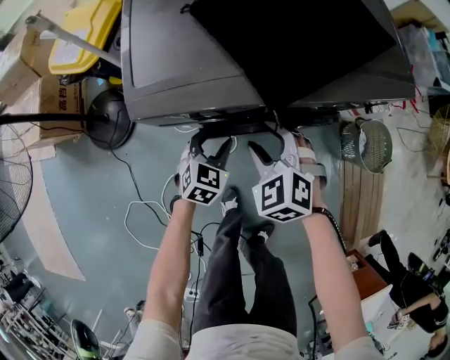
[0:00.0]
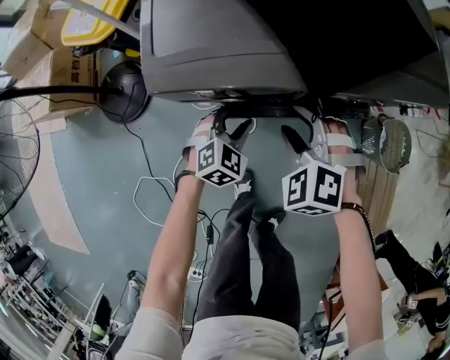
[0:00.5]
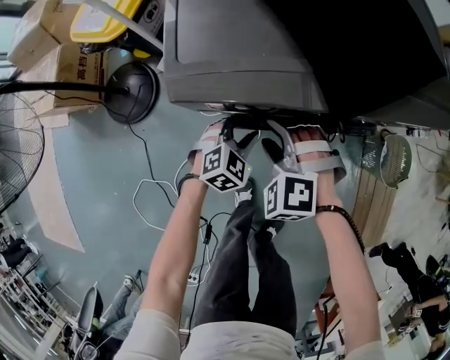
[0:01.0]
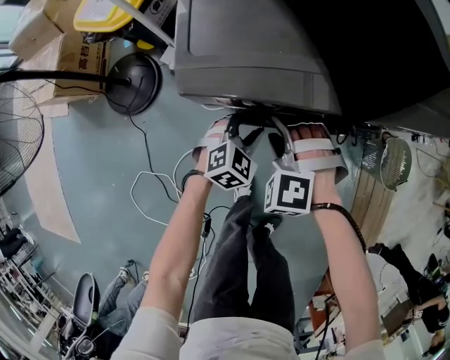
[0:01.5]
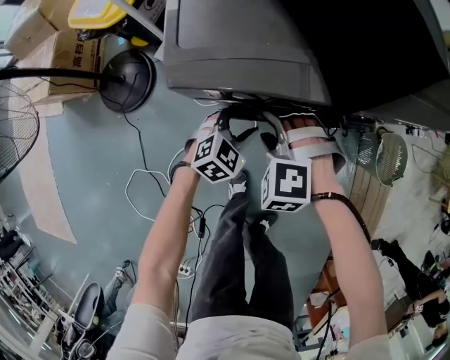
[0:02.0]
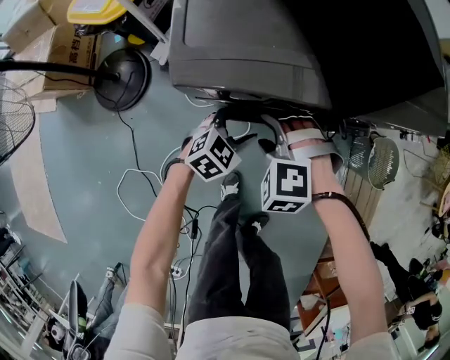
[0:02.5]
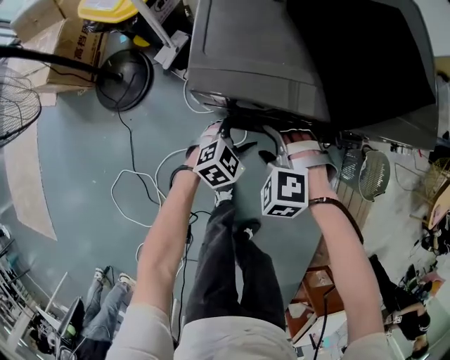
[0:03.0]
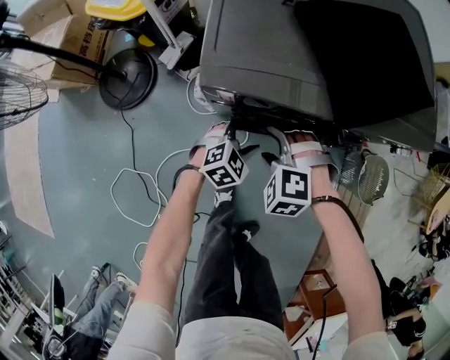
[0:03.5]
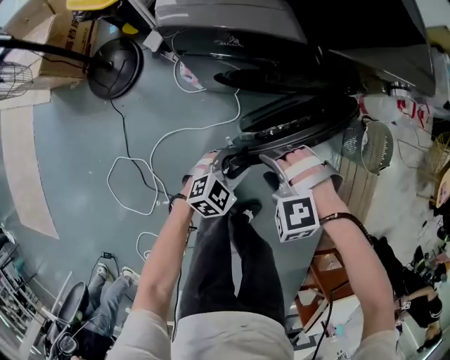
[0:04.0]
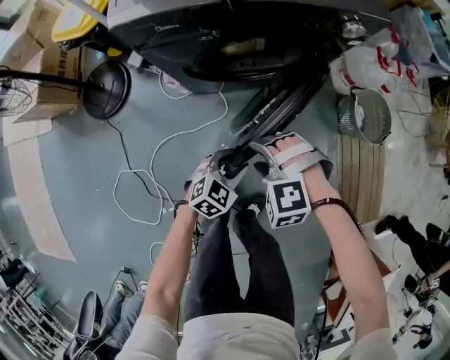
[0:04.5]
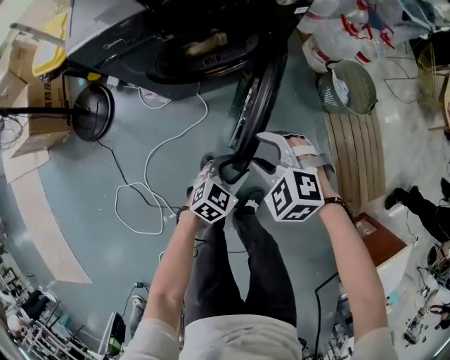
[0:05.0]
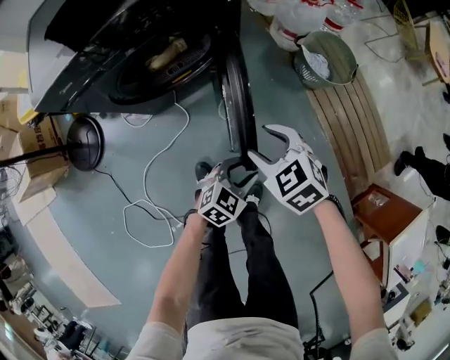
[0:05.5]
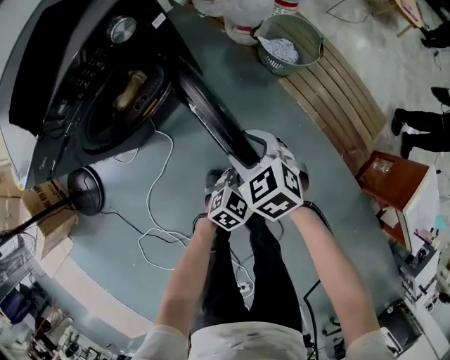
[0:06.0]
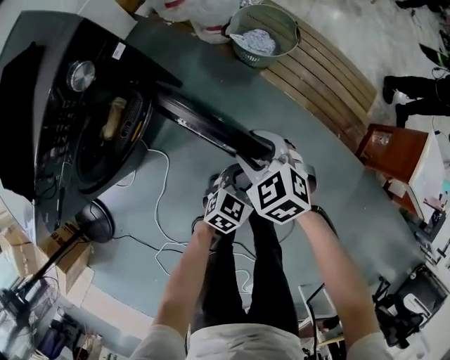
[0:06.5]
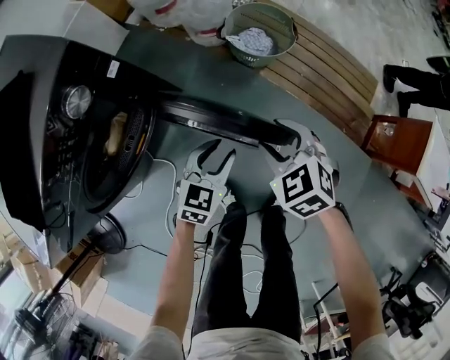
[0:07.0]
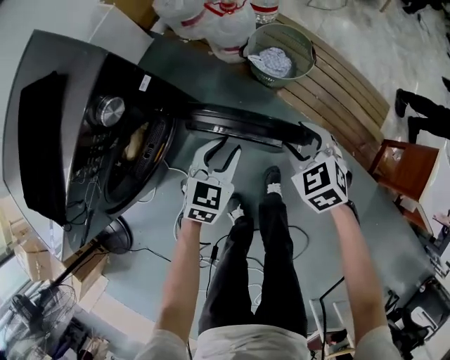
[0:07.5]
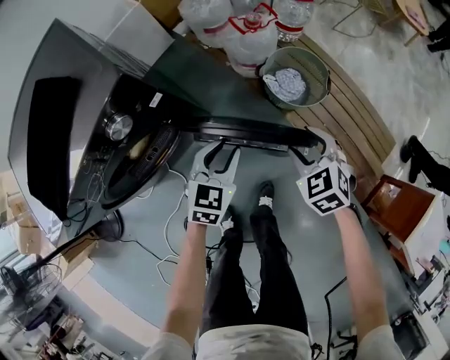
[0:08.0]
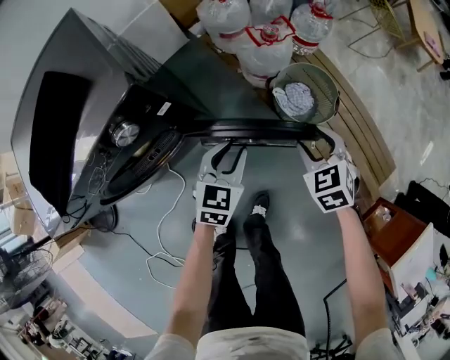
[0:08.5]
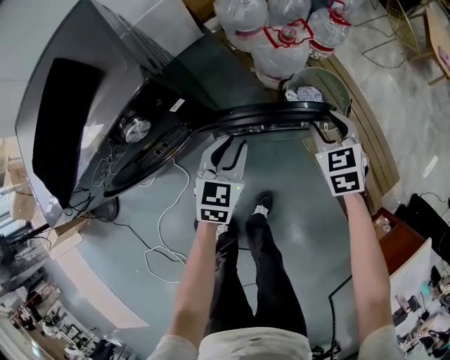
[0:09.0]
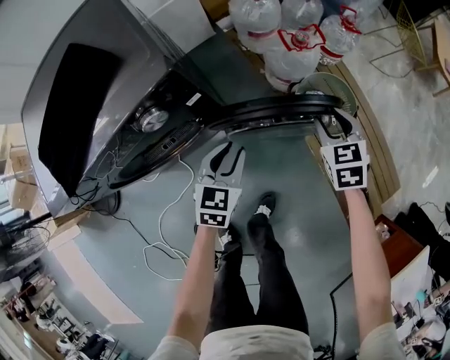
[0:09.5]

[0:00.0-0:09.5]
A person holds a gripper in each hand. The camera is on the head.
0:00.0 to 0:02.0: The right gripper moves to the left, approximately 5 cm, and turns by roughly 40 degrees.
0:02.0 to 0:04.0: The two grippers go roughly 20 cm backward and to the right. The right gripper changes its angle by approximately 20 degrees.
0:04.0 to 0:05.5: The right gripper ends up roughly 25 cm from where it was, and twists approximately 80 degrees clockwise, seen from behind; the left gripper moves approximately 30 cm, and turns by about 20 degrees.
0:05.5 to 0:07.5: The right gripper shifts by approximately 25 cm, and rotates about 40 degrees, while the left gripper shifts by approximately 25 cm.
0:07.5 to 0:09.5: The right gripper moves forward, about 25 cm; the left gripper shifts approximately 10 cm forward and to the left, and rotates approximately 30 degrees.

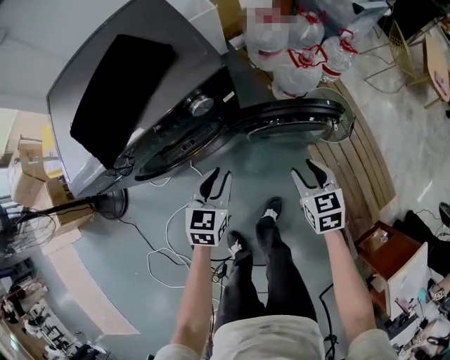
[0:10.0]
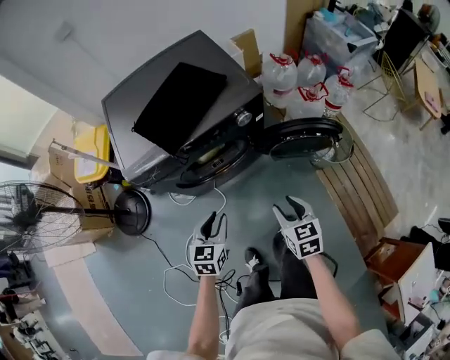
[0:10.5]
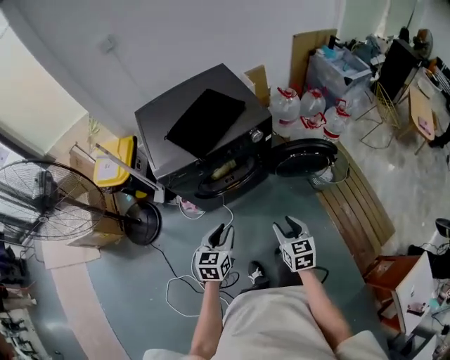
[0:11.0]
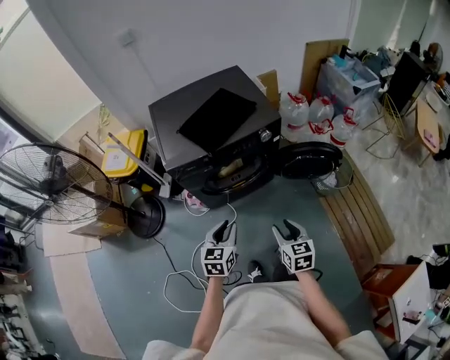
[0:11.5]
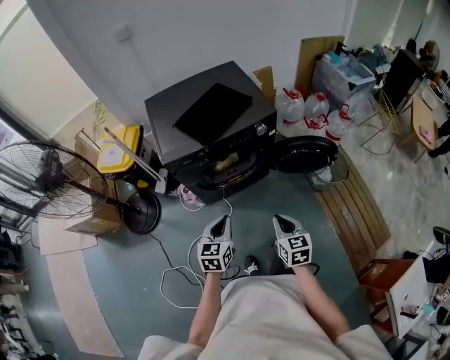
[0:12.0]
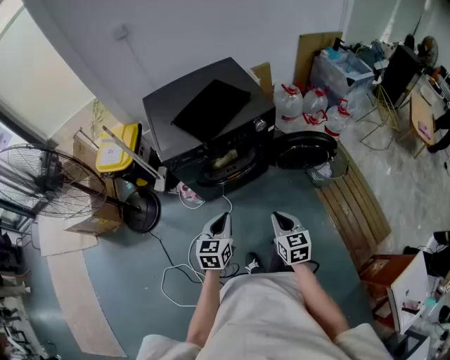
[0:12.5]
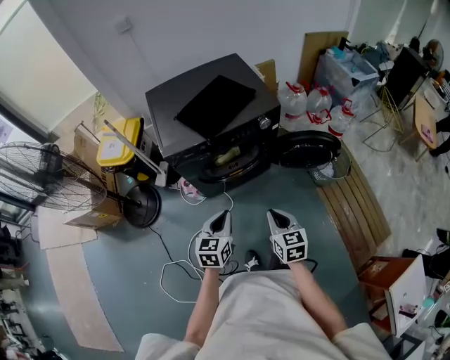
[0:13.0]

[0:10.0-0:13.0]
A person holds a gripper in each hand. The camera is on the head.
0:10.0 to 0:11.5: Both grippers travel together backward, to the left and upward, about 35 cm.
0:11.5 to 0:13.0: The right gripper closes its fingers.

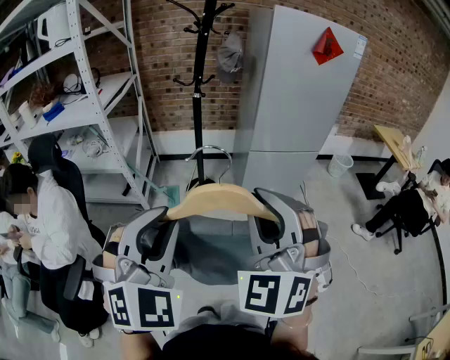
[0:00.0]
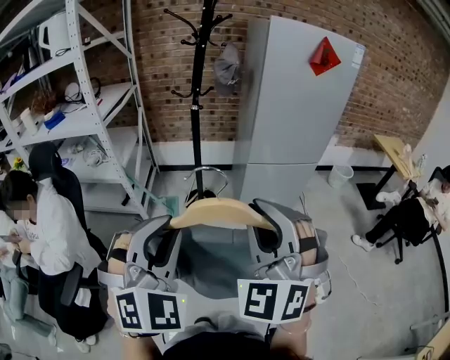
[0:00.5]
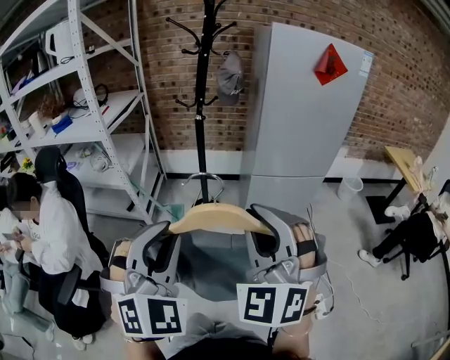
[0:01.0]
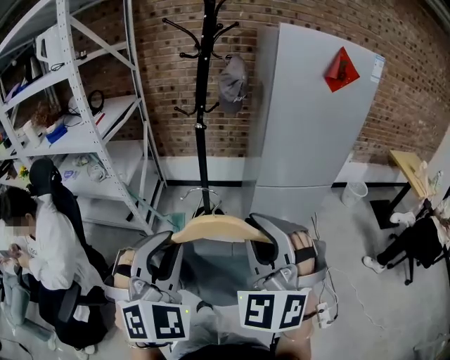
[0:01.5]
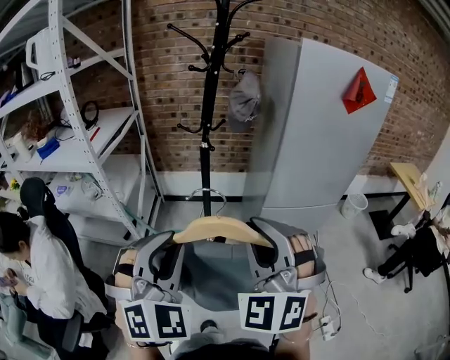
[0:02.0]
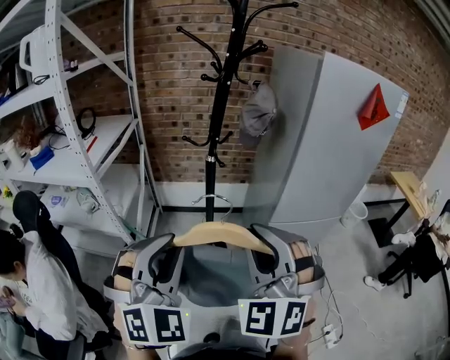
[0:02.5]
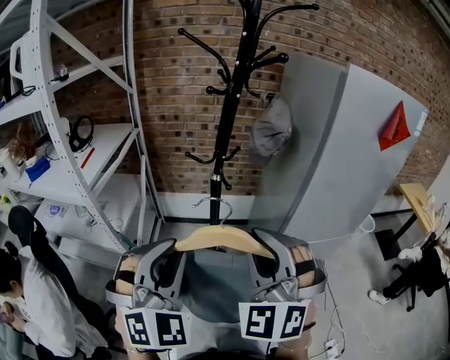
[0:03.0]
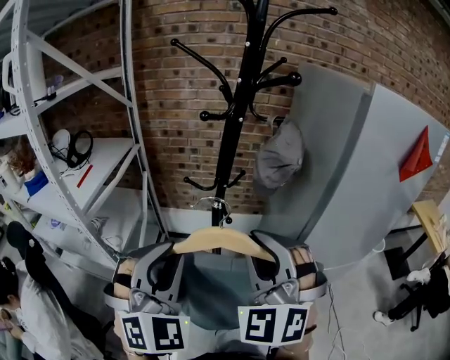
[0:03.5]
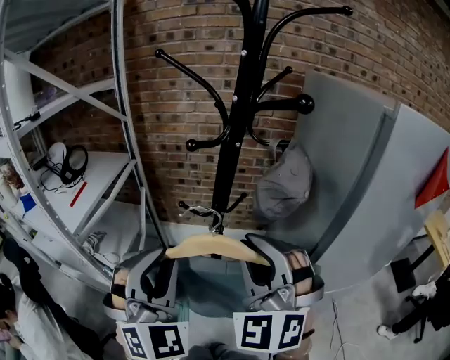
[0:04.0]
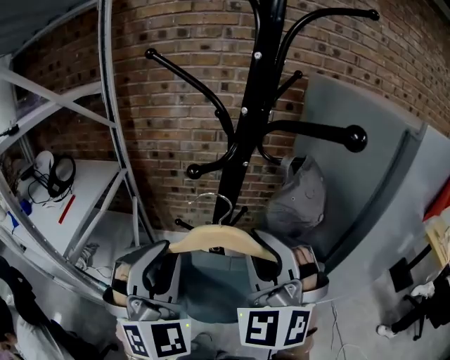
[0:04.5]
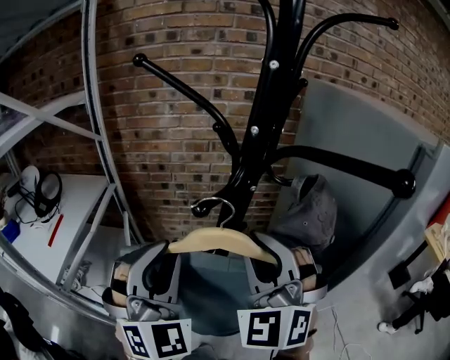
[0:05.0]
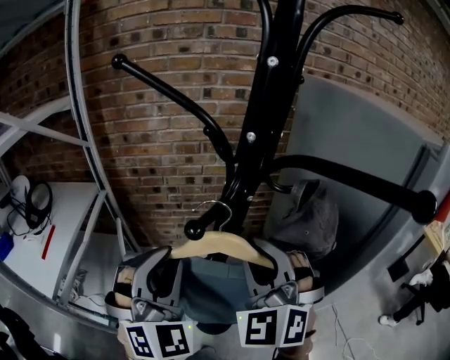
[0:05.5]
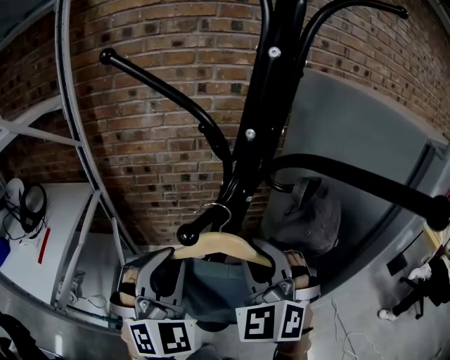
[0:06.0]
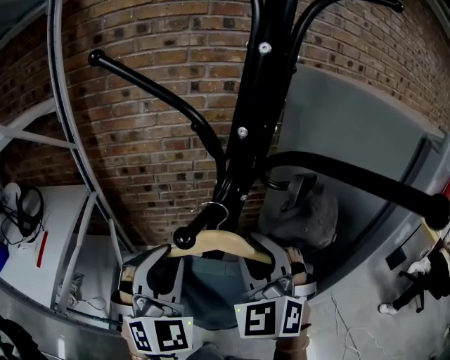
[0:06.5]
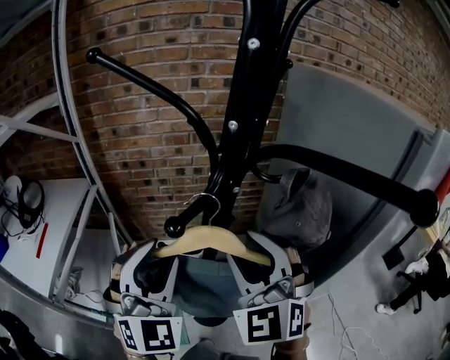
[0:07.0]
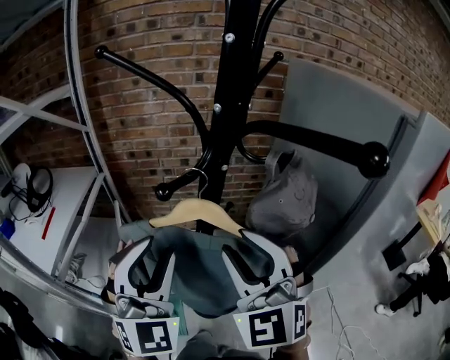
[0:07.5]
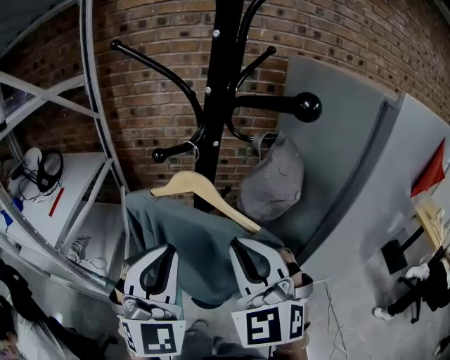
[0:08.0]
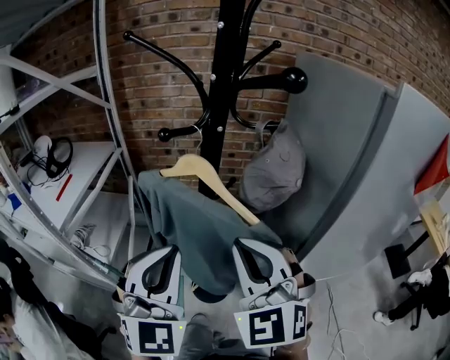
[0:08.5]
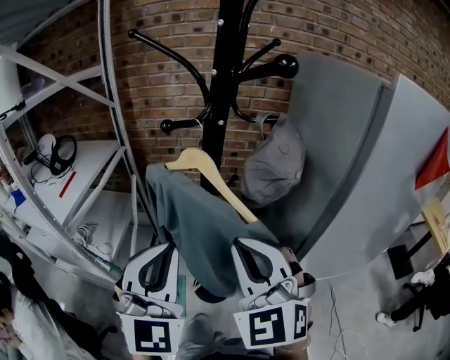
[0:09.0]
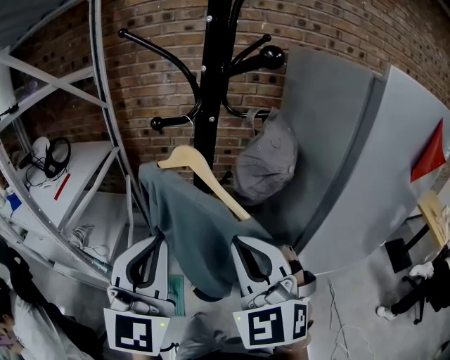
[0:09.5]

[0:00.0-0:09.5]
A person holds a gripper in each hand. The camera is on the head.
0:00.0 to 0:02.0: Both grippers move forward, approximately 20 cm.
0:02.0 to 0:04.0: The grippers both shift forward by about 35 cm.
0:04.0 to 0:05.5: Both grippers travel together forward, about 15 cm.
0:05.5 to 0:07.5: Both grippers travel together backward, approximately 5 cm. The right gripper opens.
0:07.5 to 0:09.5: Both grippers move backward, roughly 10 cm. The right gripper closes, while the left gripper turns by about 30 degrees, and closes its fingers.

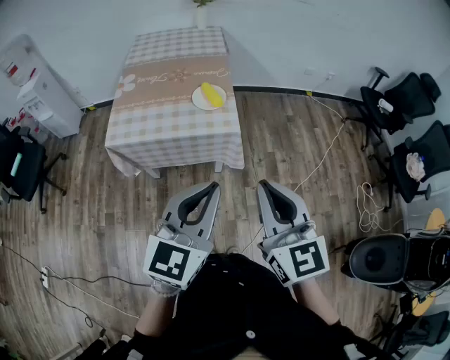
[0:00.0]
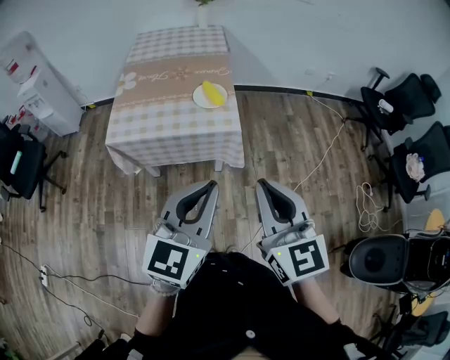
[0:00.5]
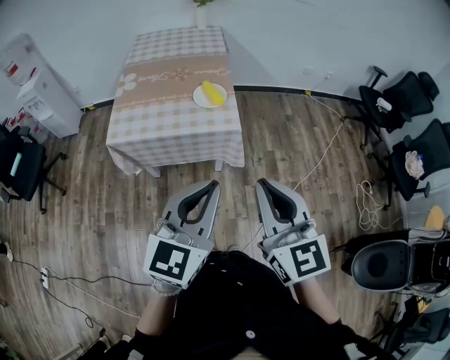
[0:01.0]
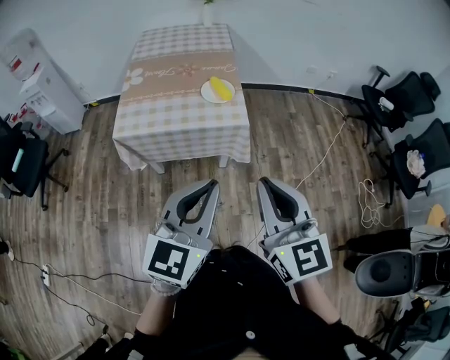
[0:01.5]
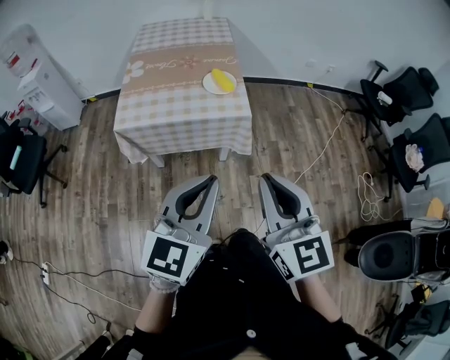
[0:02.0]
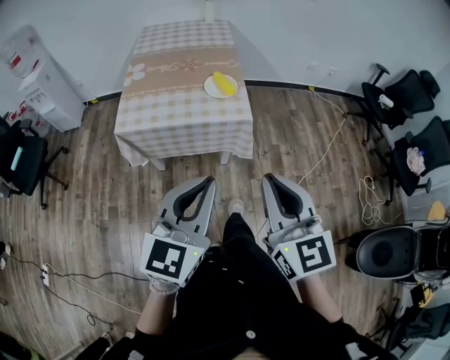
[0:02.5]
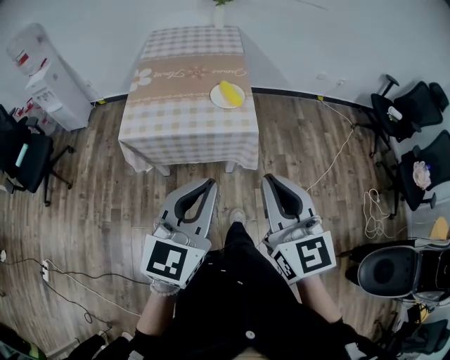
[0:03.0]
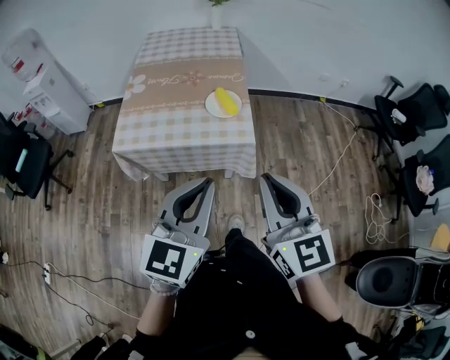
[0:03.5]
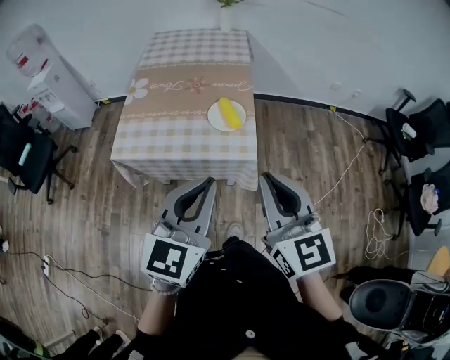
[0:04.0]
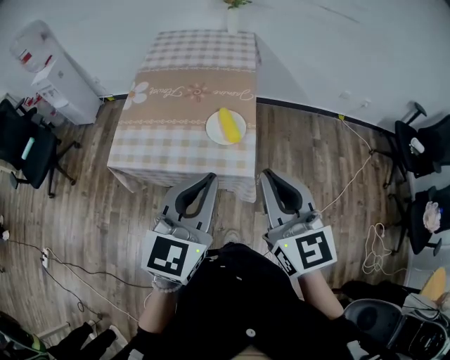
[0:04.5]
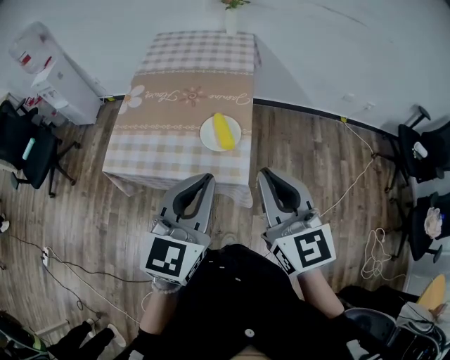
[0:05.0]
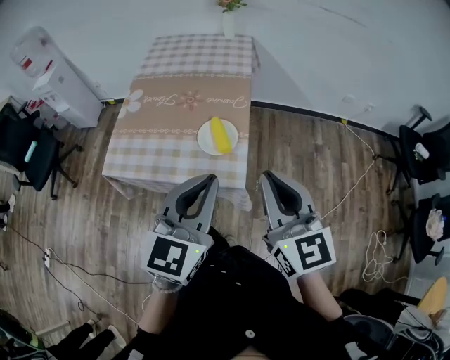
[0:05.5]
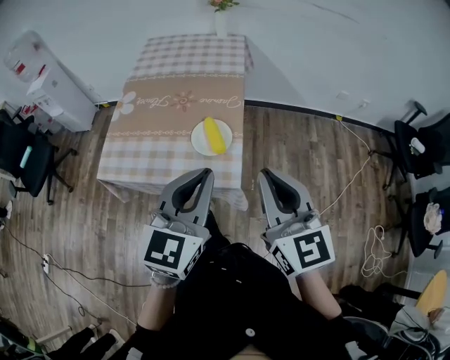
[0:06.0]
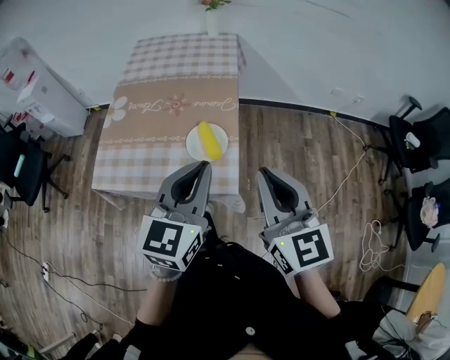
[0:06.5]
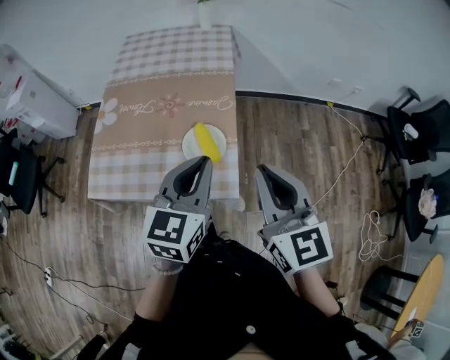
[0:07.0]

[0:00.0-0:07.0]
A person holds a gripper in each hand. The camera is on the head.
0:00.0 to 0:02.0: The left gripper is displaced to the left and backward by roughly 10 cm, while the right gripper goes roughly 10 cm backward and to the left.
0:02.0 to 0:03.5: Both grippers move forward, roughly 15 cm.
0:03.5 to 0:05.0: The left gripper travels forward and to the right by about 20 cm; the right gripper moves forward, about 20 cm.
0:05.0 to 0:07.0: The left gripper heads forward, covering approximately 15 cm. The right gripper heads forward, covering roughly 10 cm.
